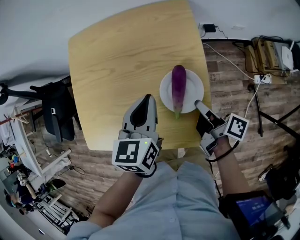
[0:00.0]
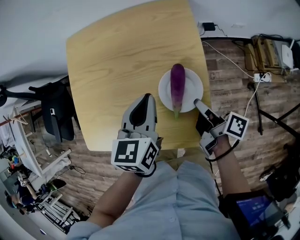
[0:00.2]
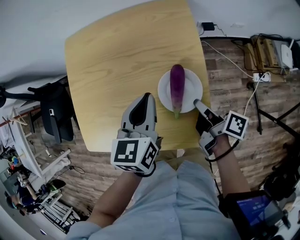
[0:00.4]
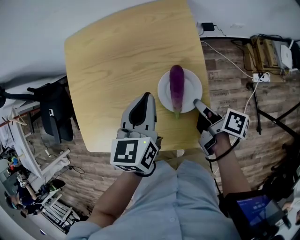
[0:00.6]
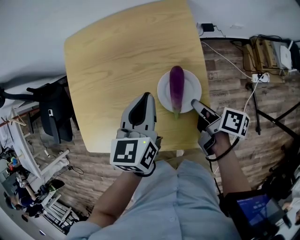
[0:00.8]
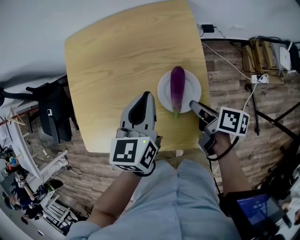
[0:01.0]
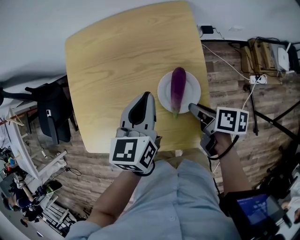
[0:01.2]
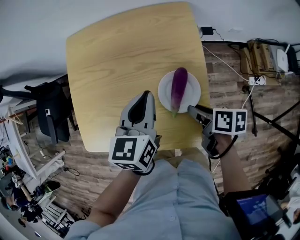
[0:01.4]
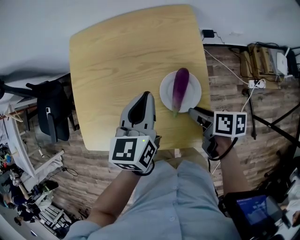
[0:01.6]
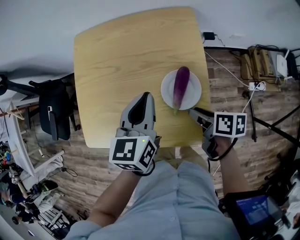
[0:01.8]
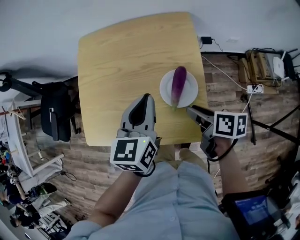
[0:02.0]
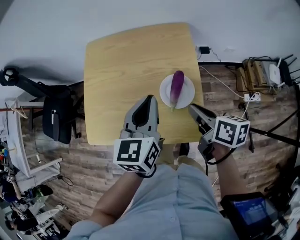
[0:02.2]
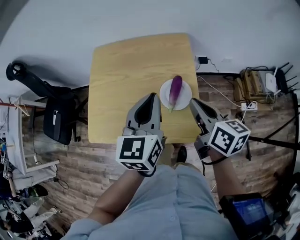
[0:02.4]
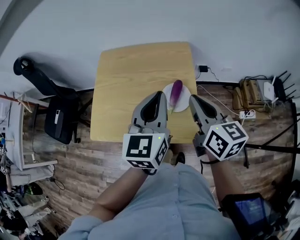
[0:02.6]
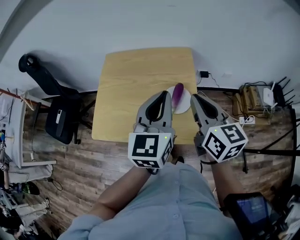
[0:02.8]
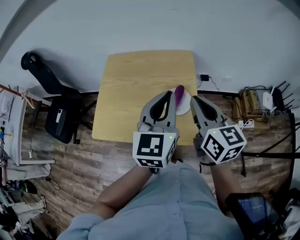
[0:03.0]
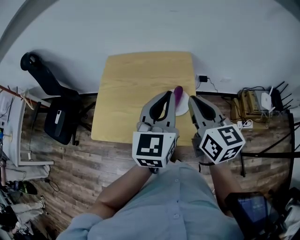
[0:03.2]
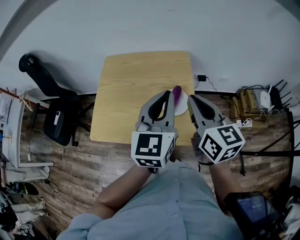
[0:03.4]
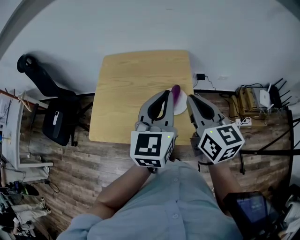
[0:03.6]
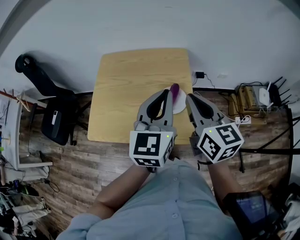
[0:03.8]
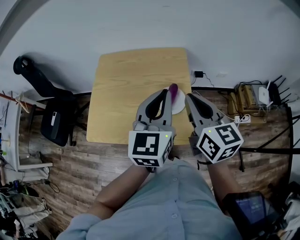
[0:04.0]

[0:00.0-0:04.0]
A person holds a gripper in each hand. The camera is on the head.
1.4 to 2.6 s: The left gripper goes some 20 cm upward, and turns by about 20 degrees.

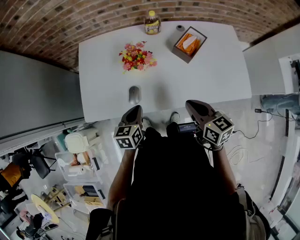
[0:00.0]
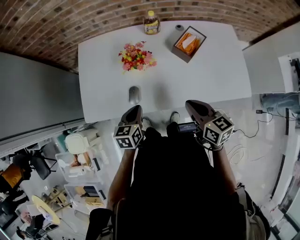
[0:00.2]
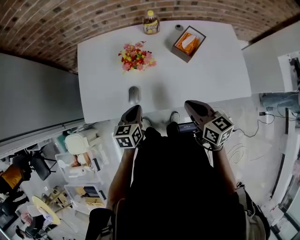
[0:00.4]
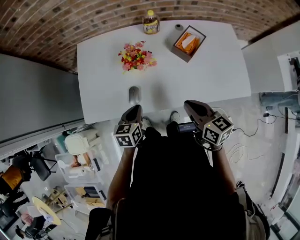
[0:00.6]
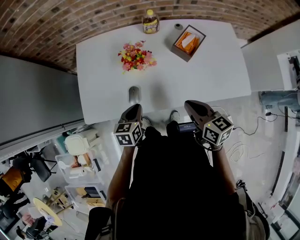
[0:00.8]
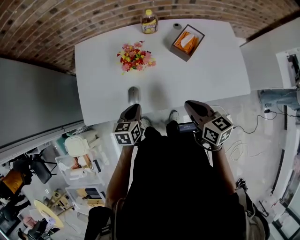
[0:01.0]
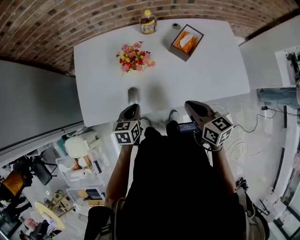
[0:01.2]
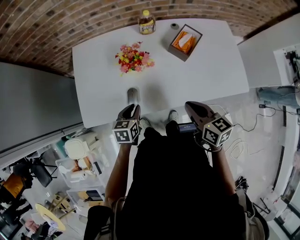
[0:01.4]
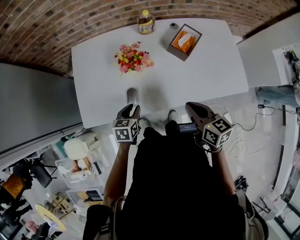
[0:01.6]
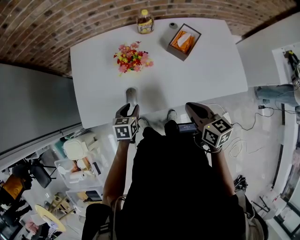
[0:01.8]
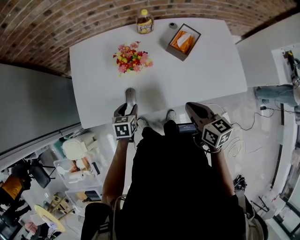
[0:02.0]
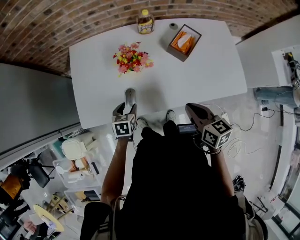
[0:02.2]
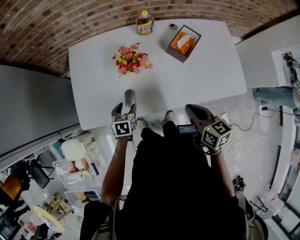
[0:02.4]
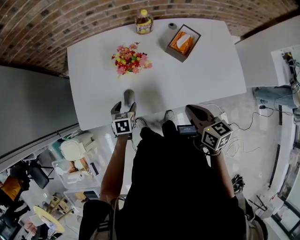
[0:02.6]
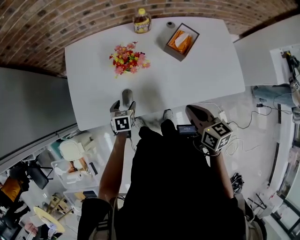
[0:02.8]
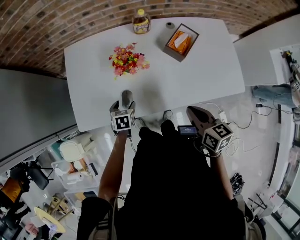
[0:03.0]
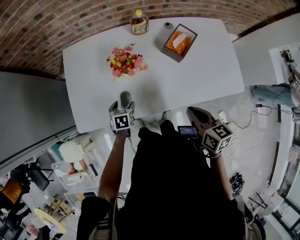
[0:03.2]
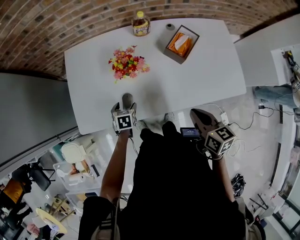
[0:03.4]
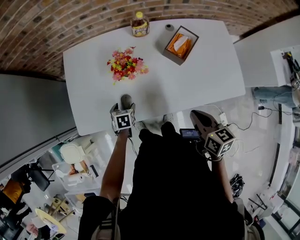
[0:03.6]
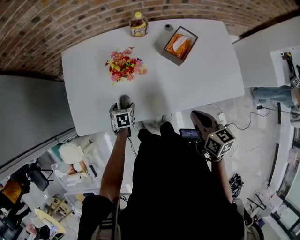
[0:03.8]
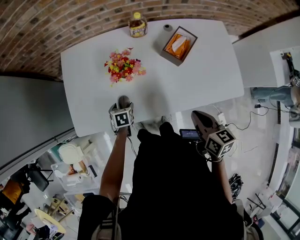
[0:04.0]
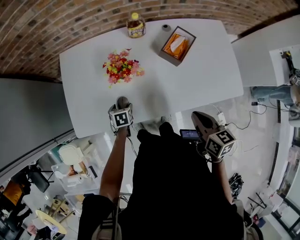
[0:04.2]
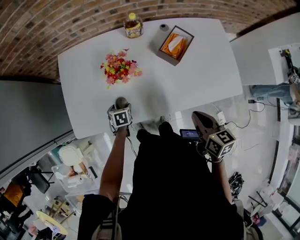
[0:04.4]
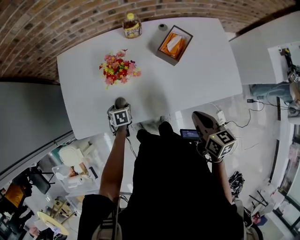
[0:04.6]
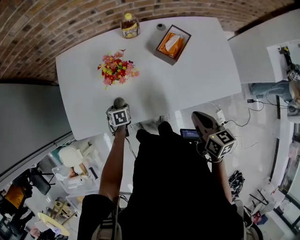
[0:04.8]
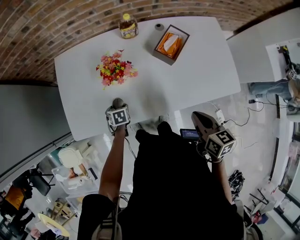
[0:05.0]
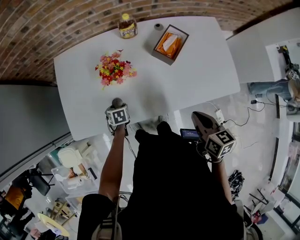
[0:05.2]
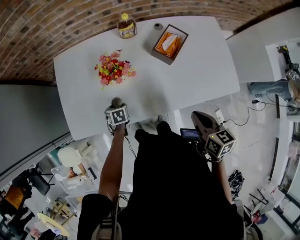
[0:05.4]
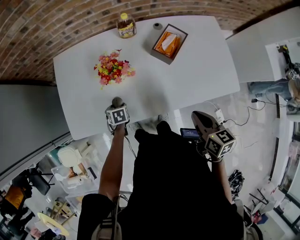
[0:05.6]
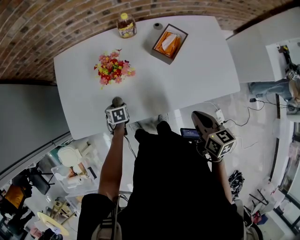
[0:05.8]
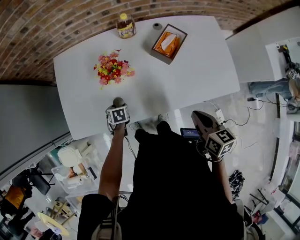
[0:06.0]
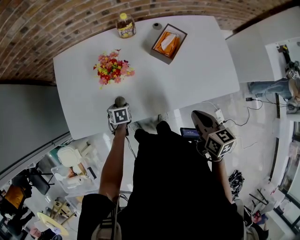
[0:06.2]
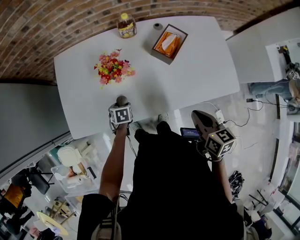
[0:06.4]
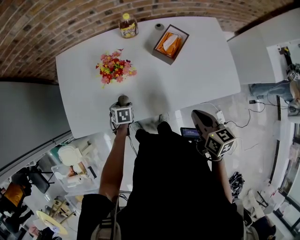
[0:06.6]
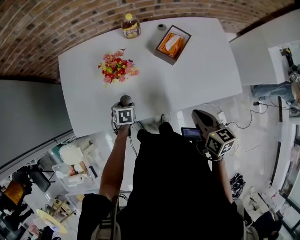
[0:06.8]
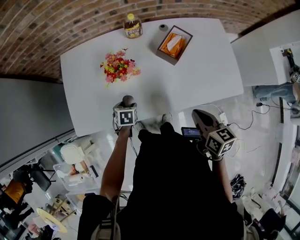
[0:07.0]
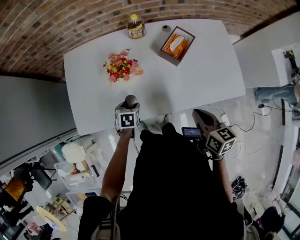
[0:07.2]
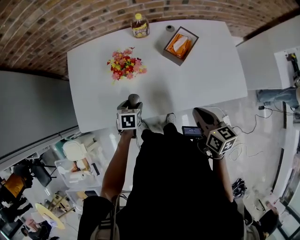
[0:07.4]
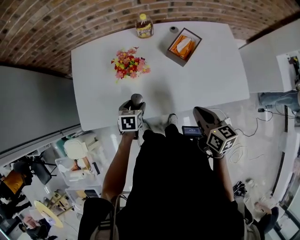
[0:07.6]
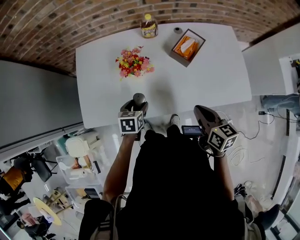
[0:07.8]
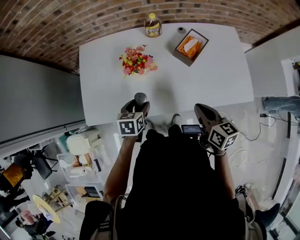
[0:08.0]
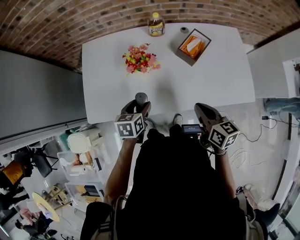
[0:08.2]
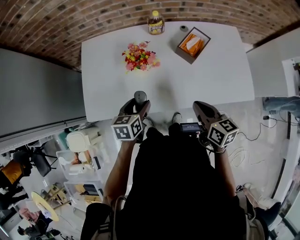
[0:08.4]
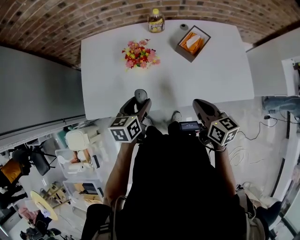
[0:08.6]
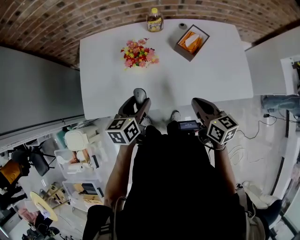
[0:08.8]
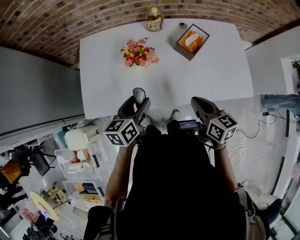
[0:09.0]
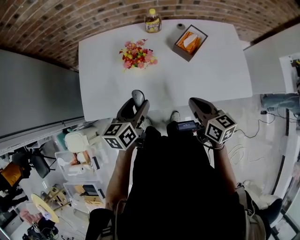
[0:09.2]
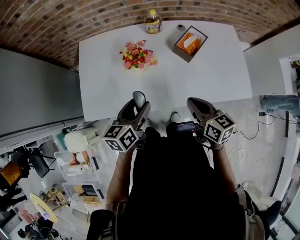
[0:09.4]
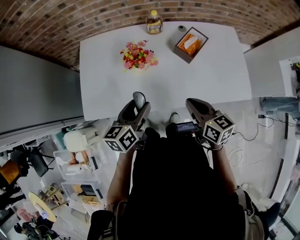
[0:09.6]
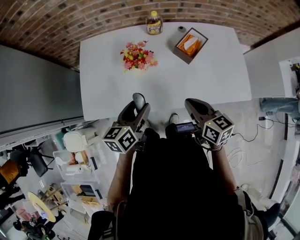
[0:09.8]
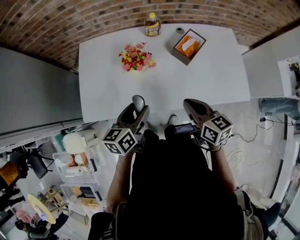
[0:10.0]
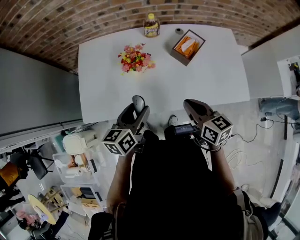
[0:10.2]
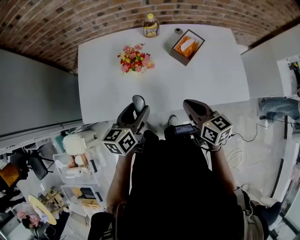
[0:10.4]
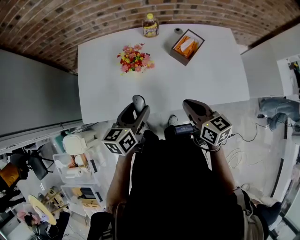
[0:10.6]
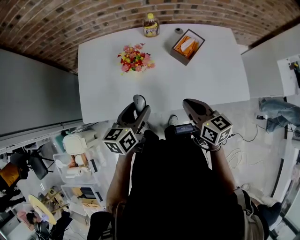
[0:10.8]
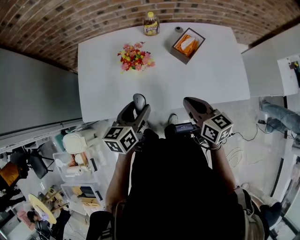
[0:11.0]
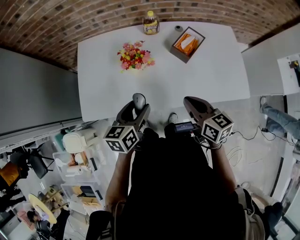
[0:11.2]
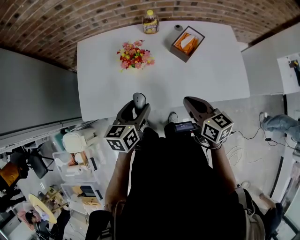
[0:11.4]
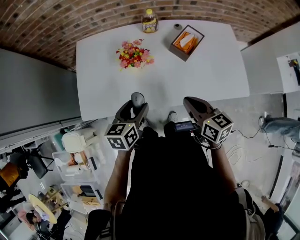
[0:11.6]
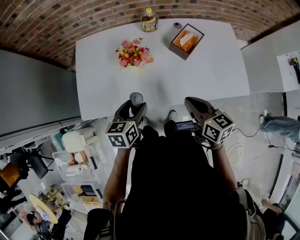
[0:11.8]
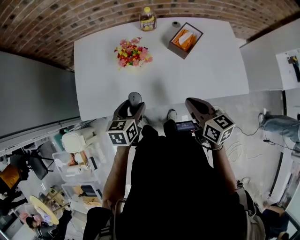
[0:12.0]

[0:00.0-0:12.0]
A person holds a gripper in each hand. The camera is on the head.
0.0 to 1.6 s: The left gripper moves downward, about 5 cm.
1.6 to 3.0 s: The left gripper goes approximately 5 cm downward, and opens.
3.0 to 4.4 s: The left gripper is displaced downward by roughly 5 cm; the right gripper shifts approximately 5 cm to the right.
4.4 to 6.0 s: There are only small adjustments of the grippers.
6.0 to 7.6 s: The left gripper moves upward, roughly 10 cm.
7.6 to 9.0 s: The left gripper goes about 15 cm upward, and changes its angle by approximately 30 degrees.
9.0 to 10.4 s: The grippers make only small movements.
10.4 to 12.0 s: The left gripper is displaced downward by approximately 5 cm.

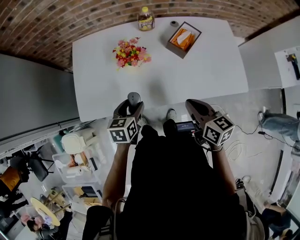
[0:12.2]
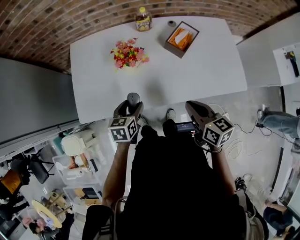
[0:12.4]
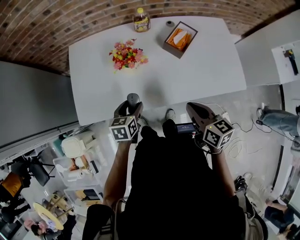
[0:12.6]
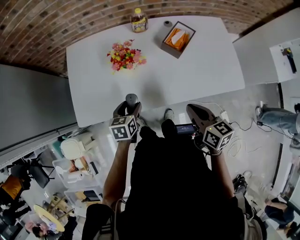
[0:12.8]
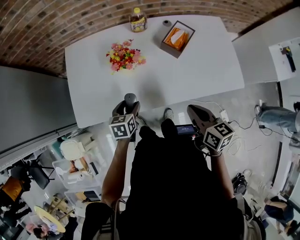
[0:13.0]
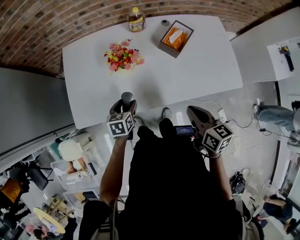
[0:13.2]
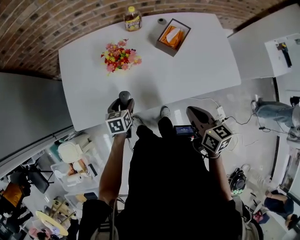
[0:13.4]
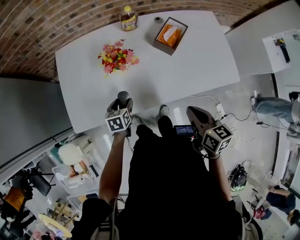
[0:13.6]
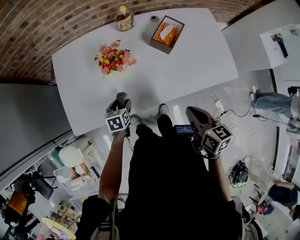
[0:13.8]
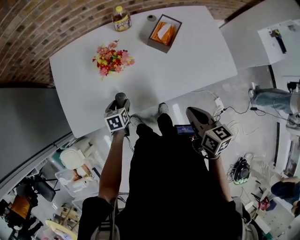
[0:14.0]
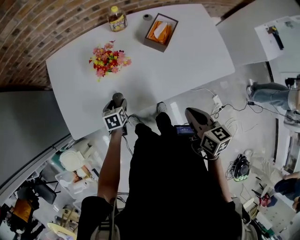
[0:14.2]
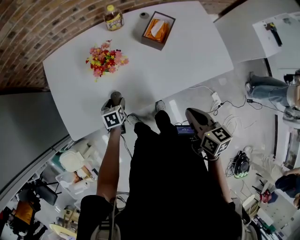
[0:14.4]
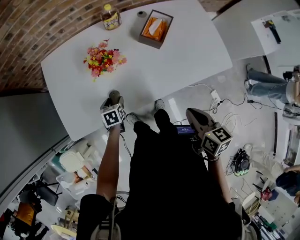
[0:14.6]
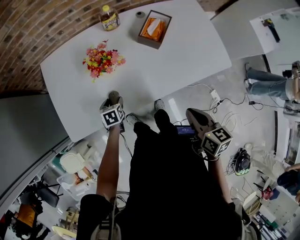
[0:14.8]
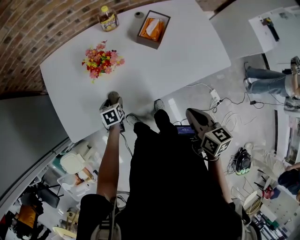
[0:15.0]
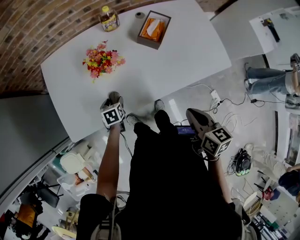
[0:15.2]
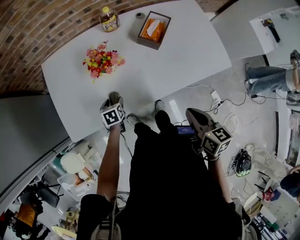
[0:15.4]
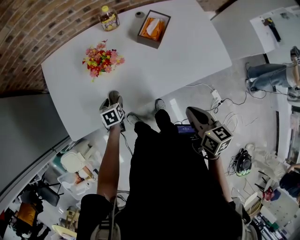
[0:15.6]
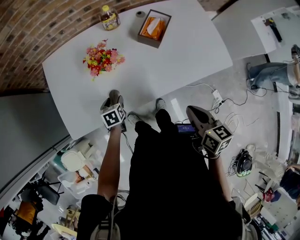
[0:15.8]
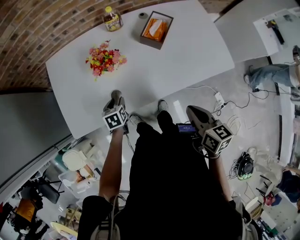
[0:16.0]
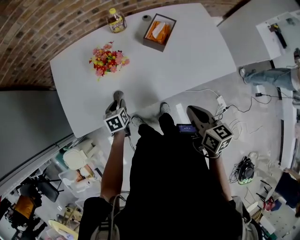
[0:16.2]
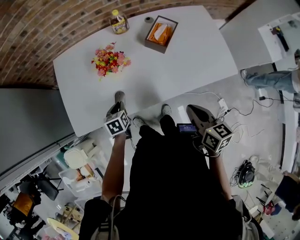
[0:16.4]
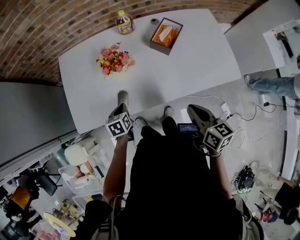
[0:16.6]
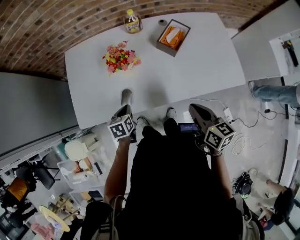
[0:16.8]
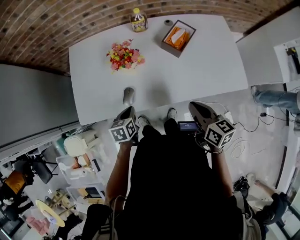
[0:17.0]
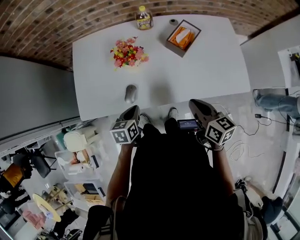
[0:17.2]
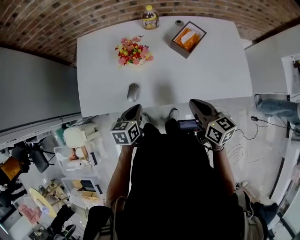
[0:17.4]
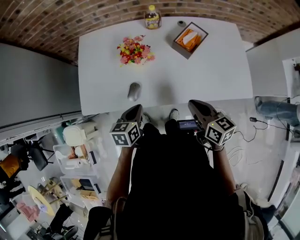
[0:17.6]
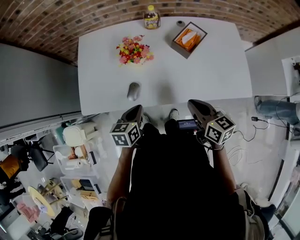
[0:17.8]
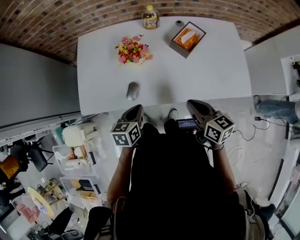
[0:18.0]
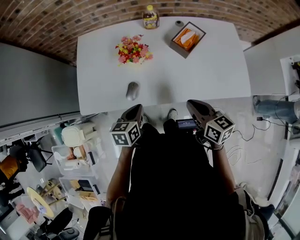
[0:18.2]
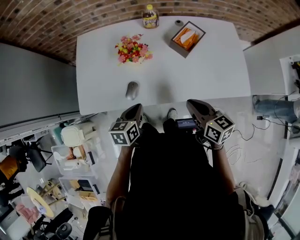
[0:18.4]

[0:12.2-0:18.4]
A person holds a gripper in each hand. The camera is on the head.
12.2 to 13.8 s: The left gripper heads downward, covering some 10 cm.
13.8 to 15.4 s: There are only small adjustments of the grippers.
15.4 to 16.8 s: The left gripper shifts roughly 10 cm upward and backward, and closes its fingers.
16.8 to 18.4 s: The left gripper goes some 10 cm upward.

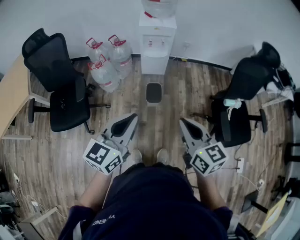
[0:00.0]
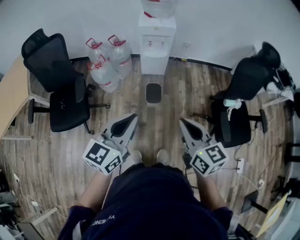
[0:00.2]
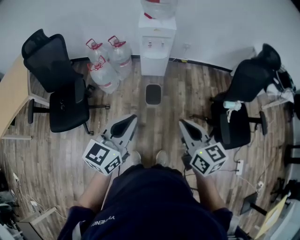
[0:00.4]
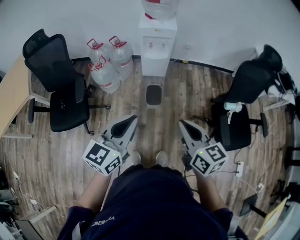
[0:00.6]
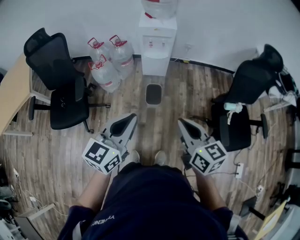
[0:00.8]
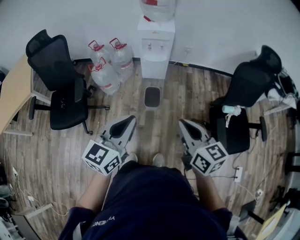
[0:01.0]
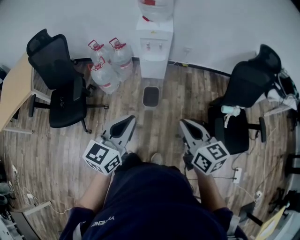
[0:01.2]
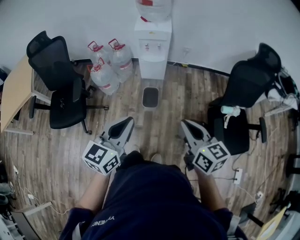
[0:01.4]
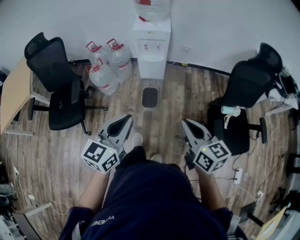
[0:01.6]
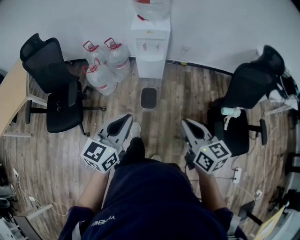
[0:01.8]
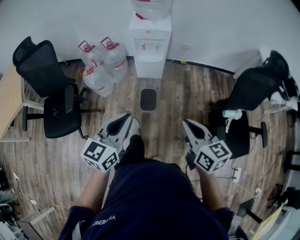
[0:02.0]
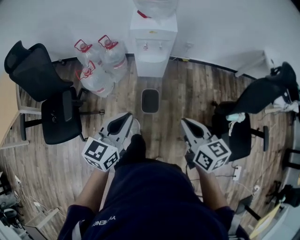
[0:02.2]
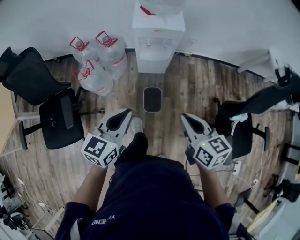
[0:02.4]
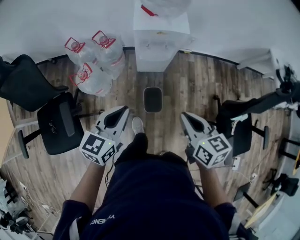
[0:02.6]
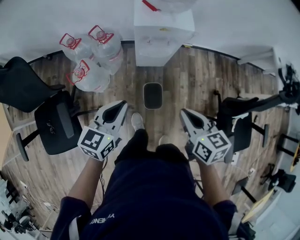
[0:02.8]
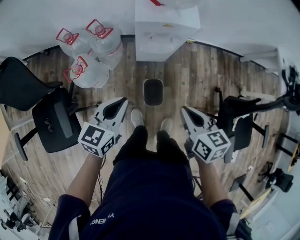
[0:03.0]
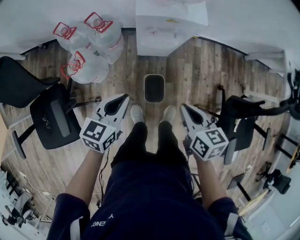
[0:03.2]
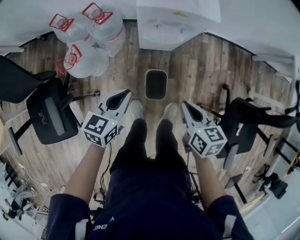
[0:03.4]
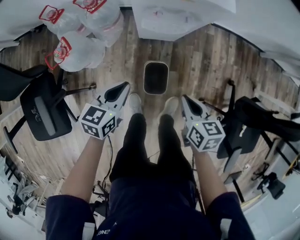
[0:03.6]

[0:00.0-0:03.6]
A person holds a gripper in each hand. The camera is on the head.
0.0 to 1.8 s: The grippers both shift to the right and forward by about 10 cm.
1.8 to 3.6 s: The two grippers travel together, forward, approximately 40 cm. The two grippers go about 35 cm downward. The left gripper turns by roughly 30 degrees; the right gripper rotates approximately 30 degrees.
